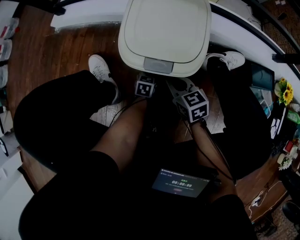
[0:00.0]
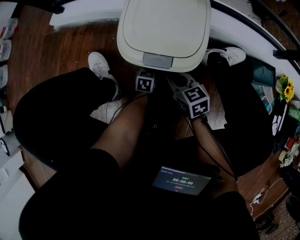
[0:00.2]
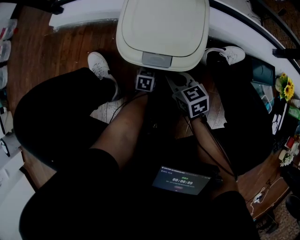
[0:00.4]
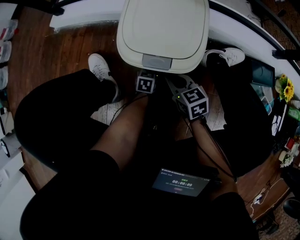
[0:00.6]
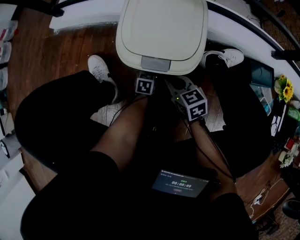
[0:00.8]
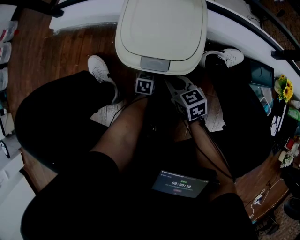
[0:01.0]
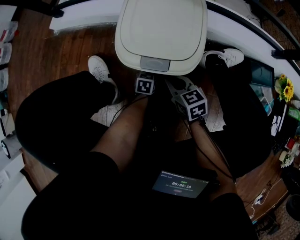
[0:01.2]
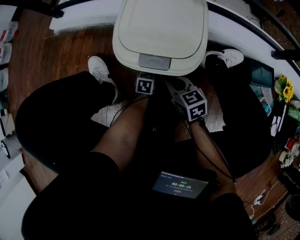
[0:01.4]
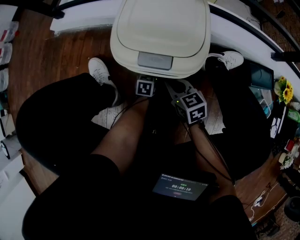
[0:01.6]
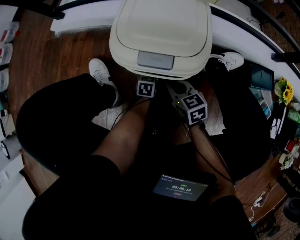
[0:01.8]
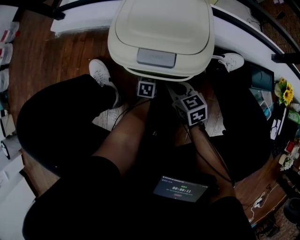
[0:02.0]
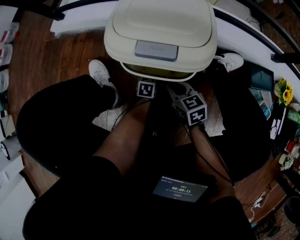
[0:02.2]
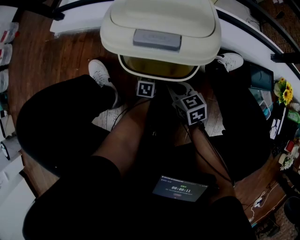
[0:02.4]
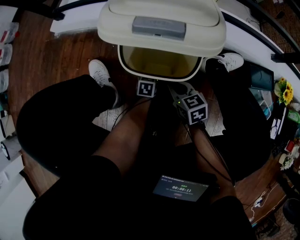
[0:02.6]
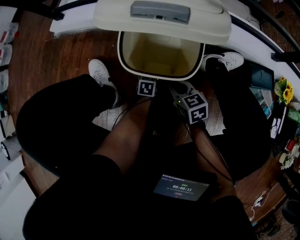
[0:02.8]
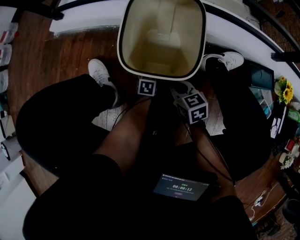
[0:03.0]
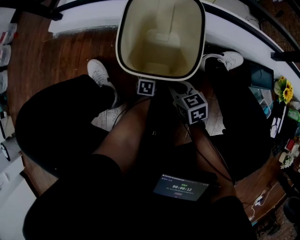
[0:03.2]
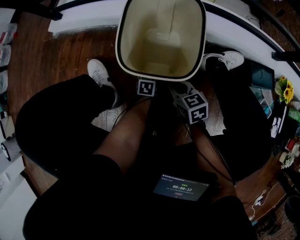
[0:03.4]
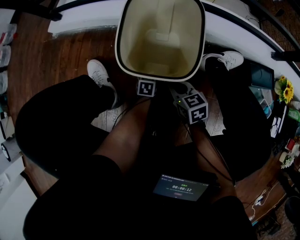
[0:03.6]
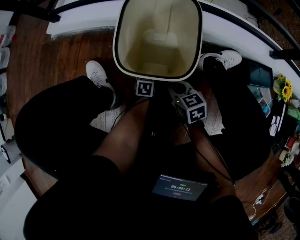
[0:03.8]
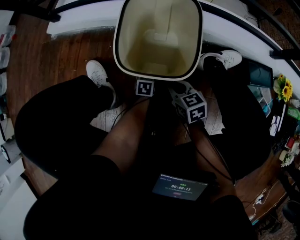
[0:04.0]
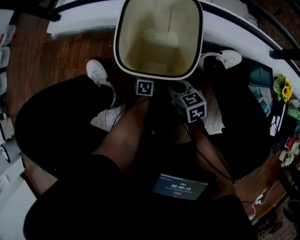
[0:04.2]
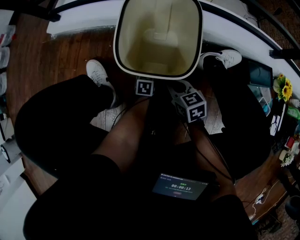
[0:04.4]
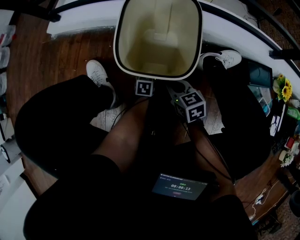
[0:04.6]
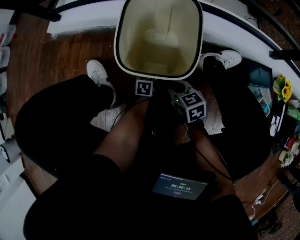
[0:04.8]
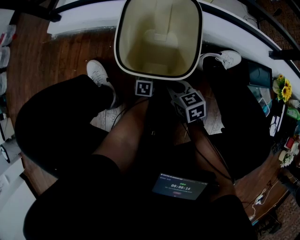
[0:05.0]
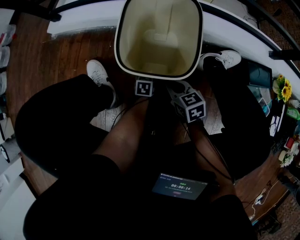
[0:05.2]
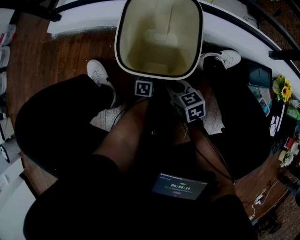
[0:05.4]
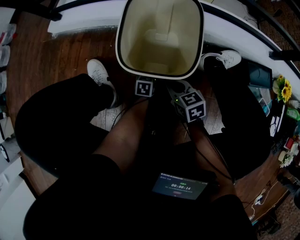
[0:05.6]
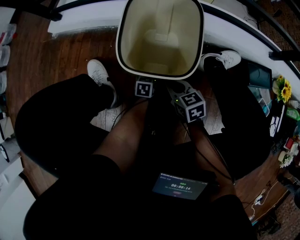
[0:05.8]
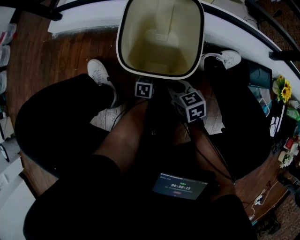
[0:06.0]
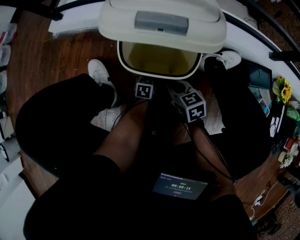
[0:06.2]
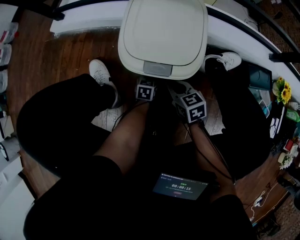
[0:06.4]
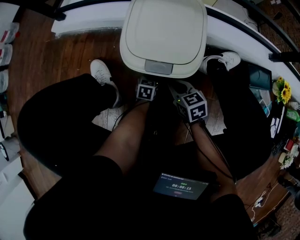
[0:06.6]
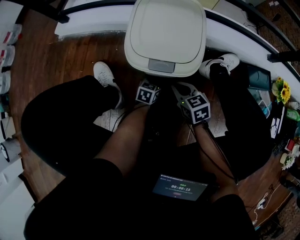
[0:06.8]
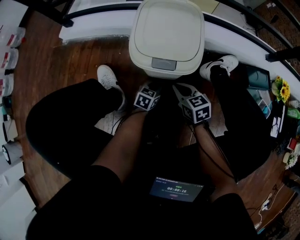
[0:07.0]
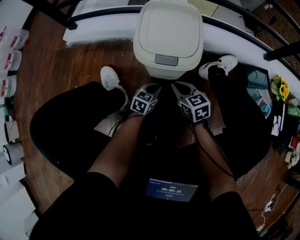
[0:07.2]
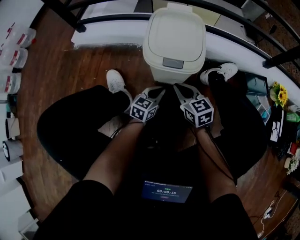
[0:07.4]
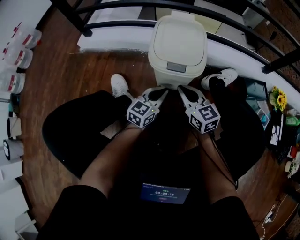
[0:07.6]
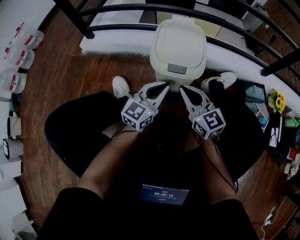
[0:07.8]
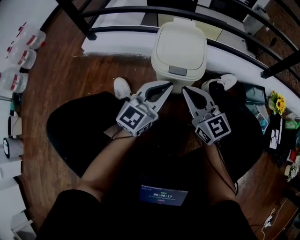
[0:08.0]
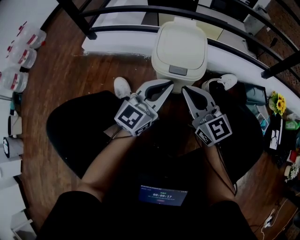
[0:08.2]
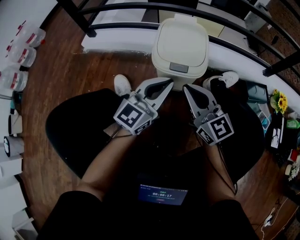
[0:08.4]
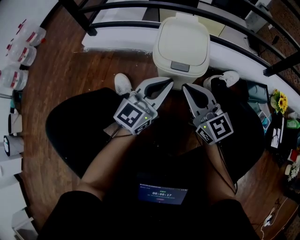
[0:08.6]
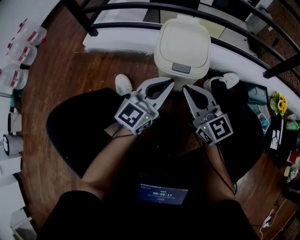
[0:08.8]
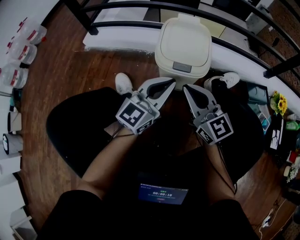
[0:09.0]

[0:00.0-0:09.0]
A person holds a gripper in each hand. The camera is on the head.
0:00.0 to 0:03.0: The grippers stay close to where they were, moving slightly.
0:03.0 to 0:04.4: The two grippers keep their place.
0:04.4 to 0:06.0: The two grippers keep their place.
0:06.0 to 0:07.6: The left gripper is displaced upward by some 30 cm, and tilts its fingers roughly 30 degrees upward. The right gripper goes some 20 cm upward, and changes its angle by approximately 30 degrees.
0:07.6 to 0:09.0: The grippers both shift upward by about 15 cm. The left gripper turns by approximately 20 degrees.

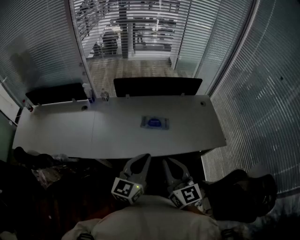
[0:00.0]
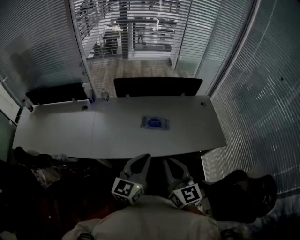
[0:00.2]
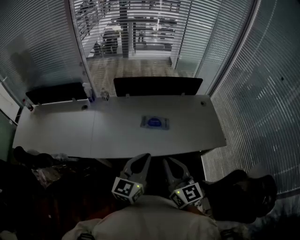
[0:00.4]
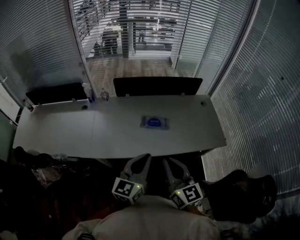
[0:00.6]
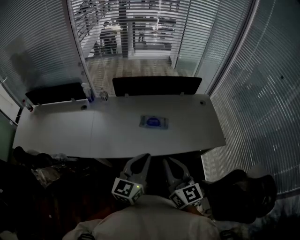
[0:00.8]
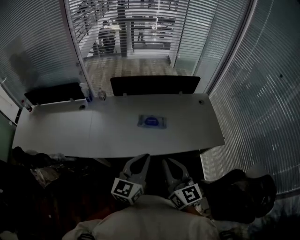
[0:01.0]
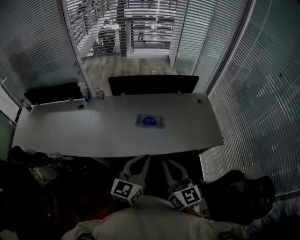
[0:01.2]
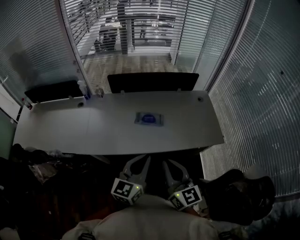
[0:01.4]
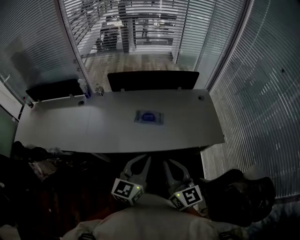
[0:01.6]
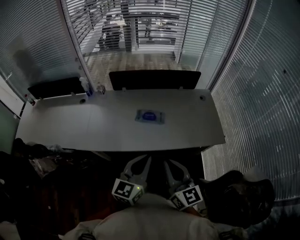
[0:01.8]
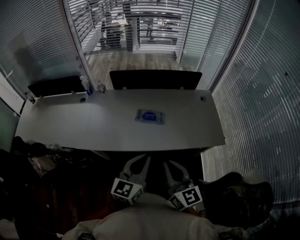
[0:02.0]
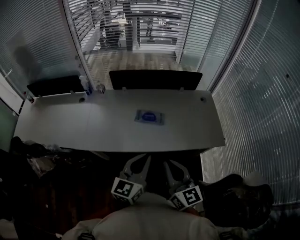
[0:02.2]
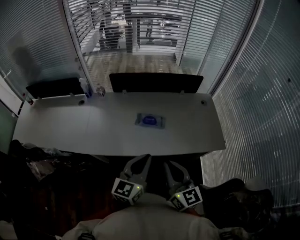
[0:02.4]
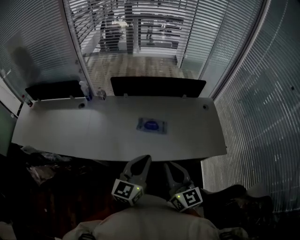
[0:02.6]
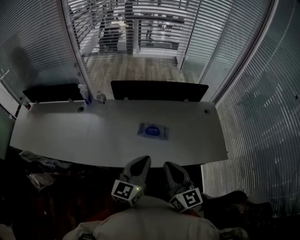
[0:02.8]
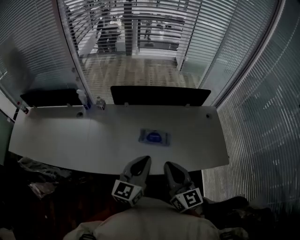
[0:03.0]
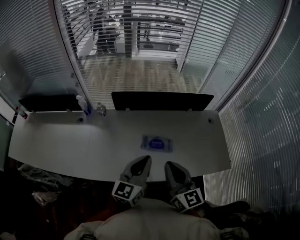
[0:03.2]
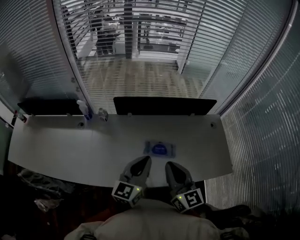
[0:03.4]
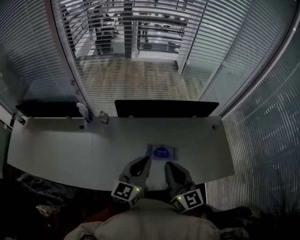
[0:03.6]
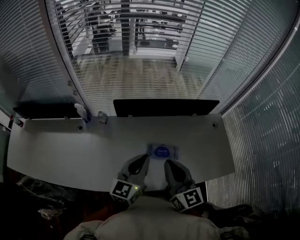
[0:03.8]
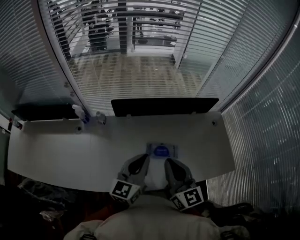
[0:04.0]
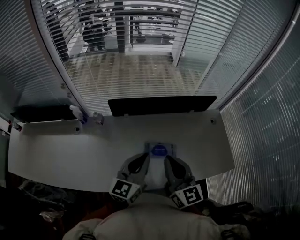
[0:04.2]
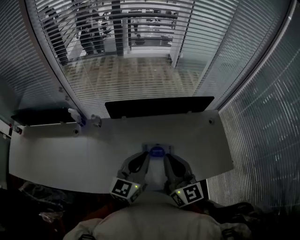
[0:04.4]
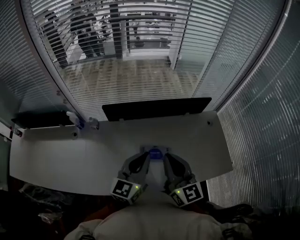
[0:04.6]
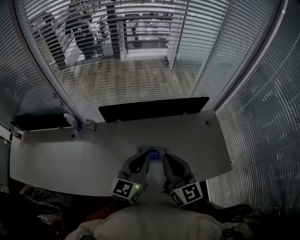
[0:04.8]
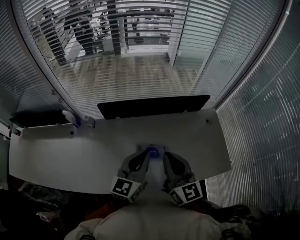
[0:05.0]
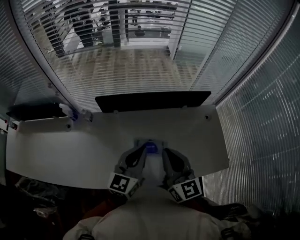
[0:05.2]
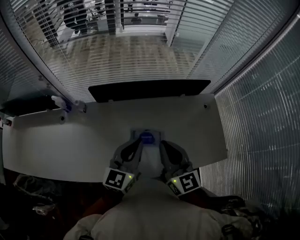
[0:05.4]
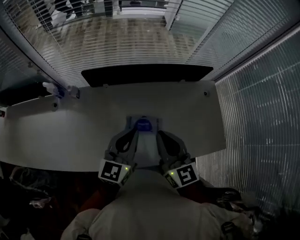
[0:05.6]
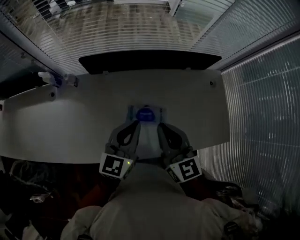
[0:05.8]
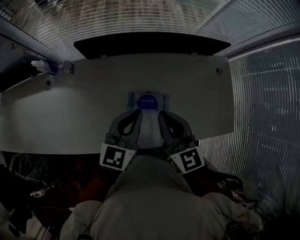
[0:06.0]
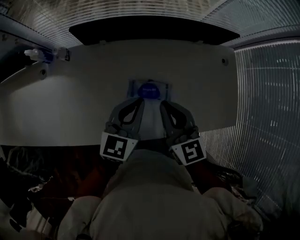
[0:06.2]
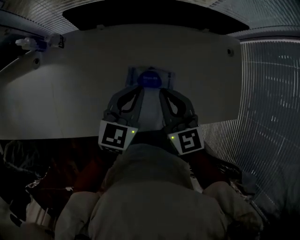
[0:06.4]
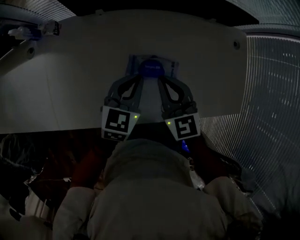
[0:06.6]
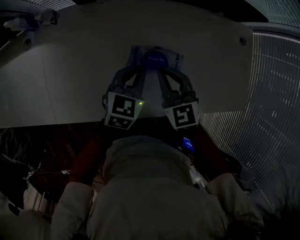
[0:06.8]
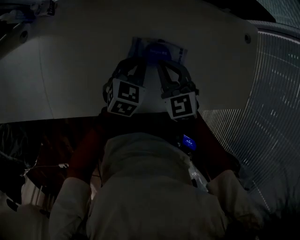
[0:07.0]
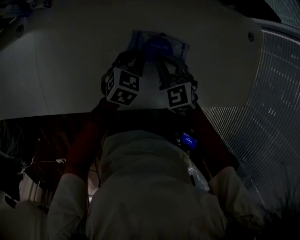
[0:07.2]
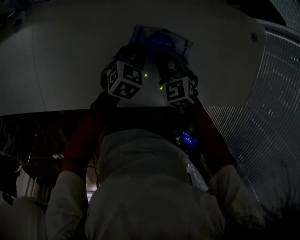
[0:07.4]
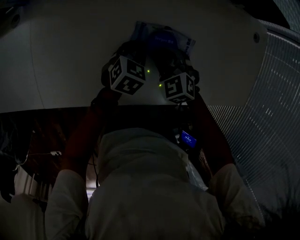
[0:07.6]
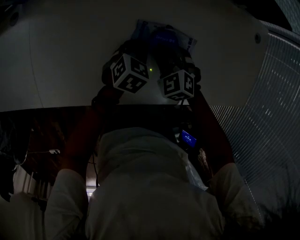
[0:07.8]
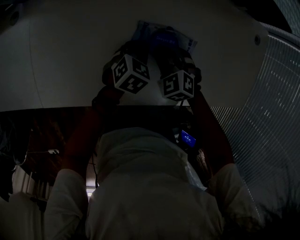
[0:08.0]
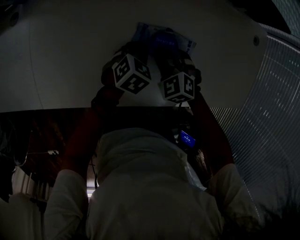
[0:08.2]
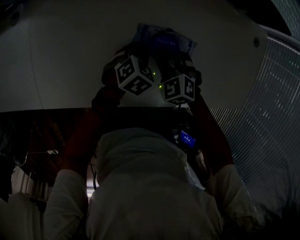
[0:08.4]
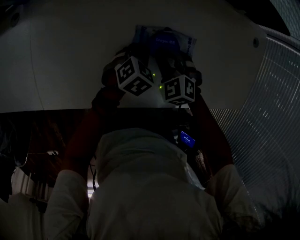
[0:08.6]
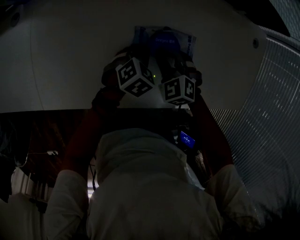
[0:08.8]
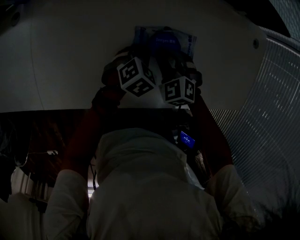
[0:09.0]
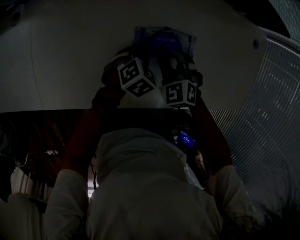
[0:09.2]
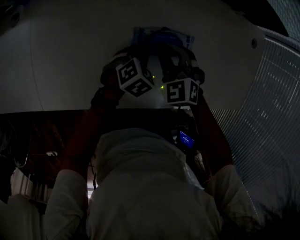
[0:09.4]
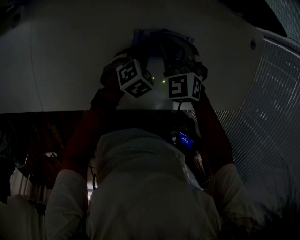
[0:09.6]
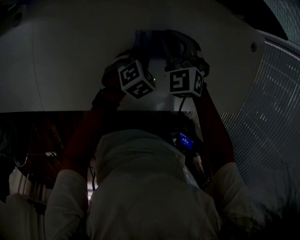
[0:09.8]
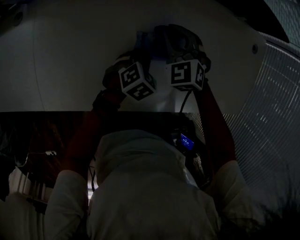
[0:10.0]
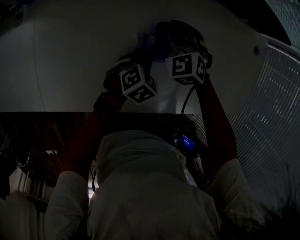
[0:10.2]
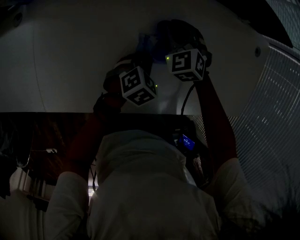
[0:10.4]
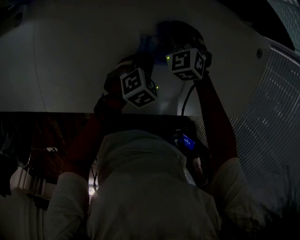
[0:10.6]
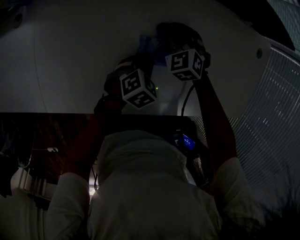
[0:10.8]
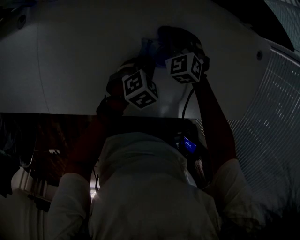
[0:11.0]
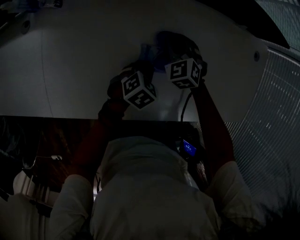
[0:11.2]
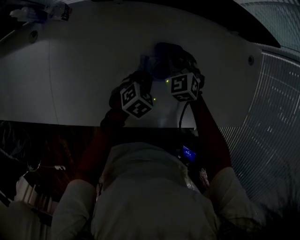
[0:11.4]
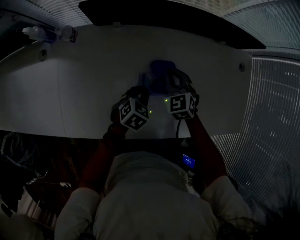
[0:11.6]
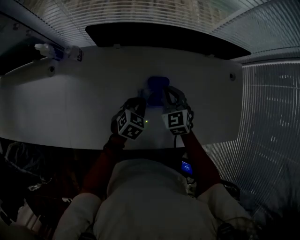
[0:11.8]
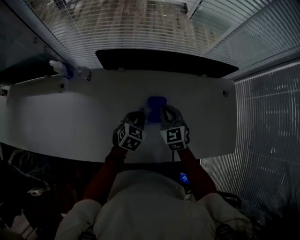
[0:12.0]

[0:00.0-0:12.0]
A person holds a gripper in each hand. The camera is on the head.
0:00.0 to 0:01.6: Both grippers move to the right, some 10 cm.
0:01.6 to 0:03.0: Both grippers move forward, approximately 15 cm.
0:03.0 to 0:04.4: Both grippers travel together forward, roughly 15 cm.
0:04.4 to 0:06.0: The left gripper travels downward by about 10 cm, while the right gripper shifts some 15 cm downward and forward.
0:06.0 to 0:07.6: Both grippers move downward, approximately 30 cm. The left gripper points its fingers some 40 degrees further downward. Meanwhile the right gripper tips its fingers downward by about 40 degrees, and opens its fingers.
0:07.6 to 0:09.0: The grippers make only small movements.
0:09.0 to 0:10.4: The right gripper moves forward, roughly 15 cm.
0:10.4 to 0:12.0: The right gripper travels upward and backward by some 15 cm, and rotates roughly 30 degrees, while the left gripper travels upward by approximately 15 cm.

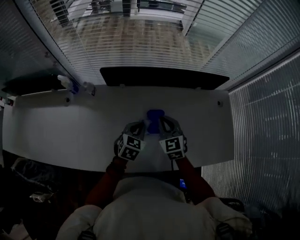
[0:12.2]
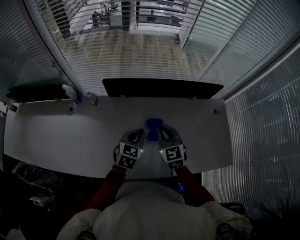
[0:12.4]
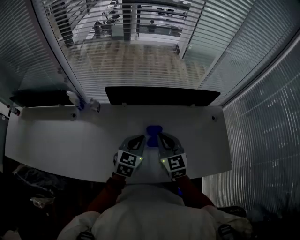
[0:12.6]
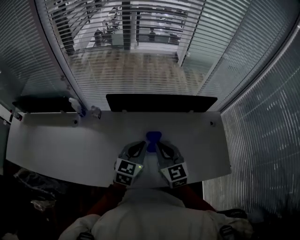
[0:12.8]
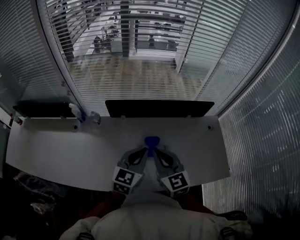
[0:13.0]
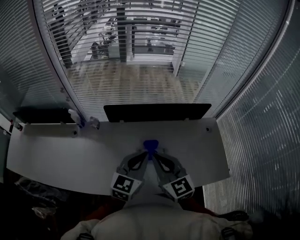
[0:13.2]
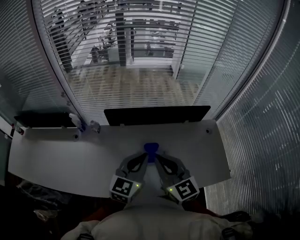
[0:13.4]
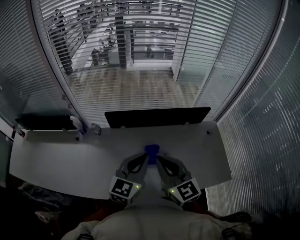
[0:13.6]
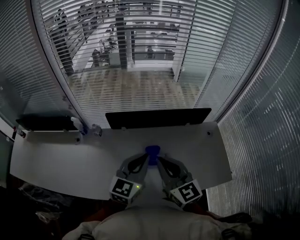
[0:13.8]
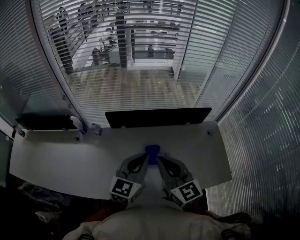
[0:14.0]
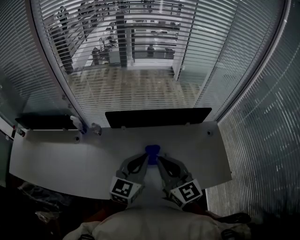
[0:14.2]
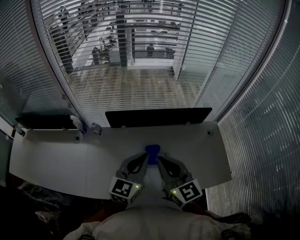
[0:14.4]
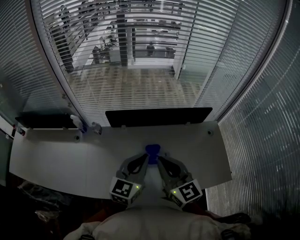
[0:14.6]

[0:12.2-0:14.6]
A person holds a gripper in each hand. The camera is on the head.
0:12.2 to 0:13.4: The right gripper shifts about 30 cm upward and backward, and rotates approximately 20 degrees. Meanwhile the left gripper shifts some 25 cm upward, and changes its angle by about 30 degrees.
0:13.4 to 0:14.6: The grippers stay close to where they were, moving slightly.
